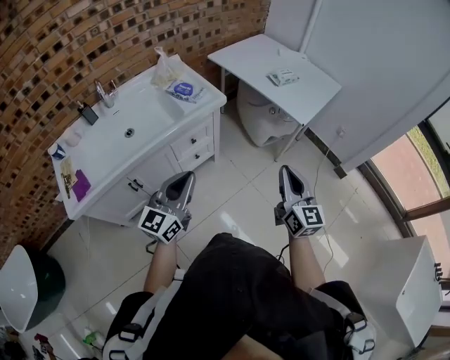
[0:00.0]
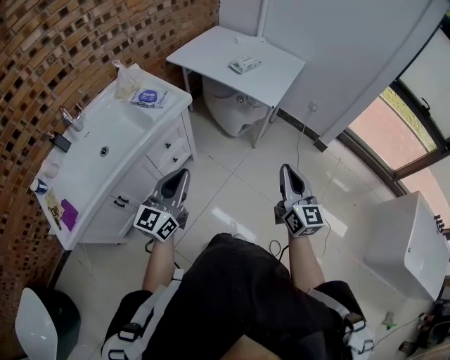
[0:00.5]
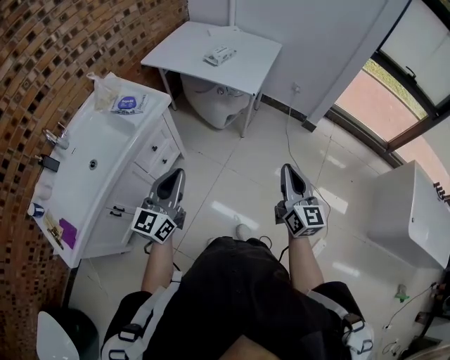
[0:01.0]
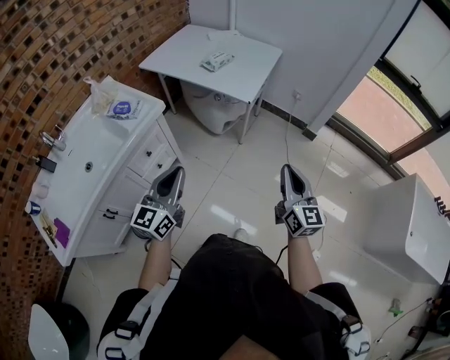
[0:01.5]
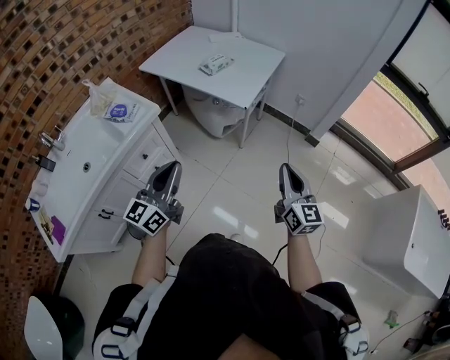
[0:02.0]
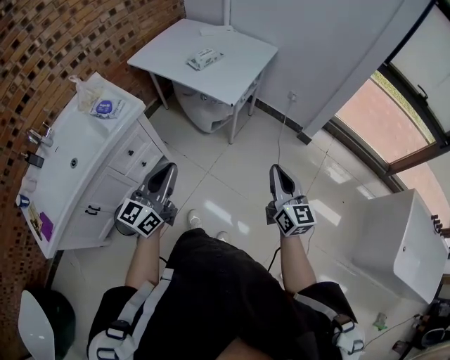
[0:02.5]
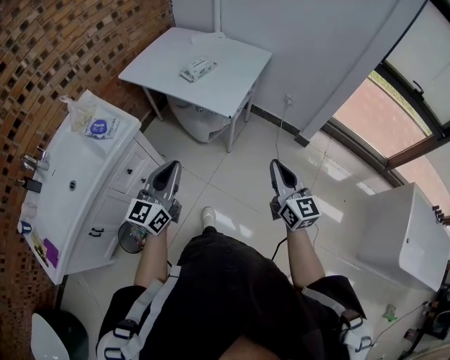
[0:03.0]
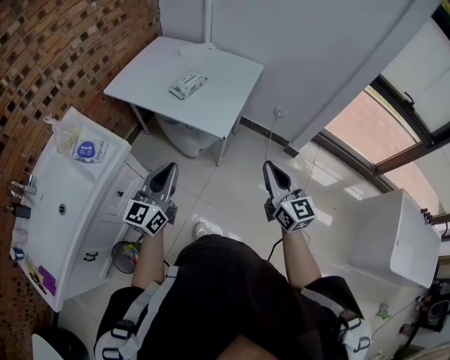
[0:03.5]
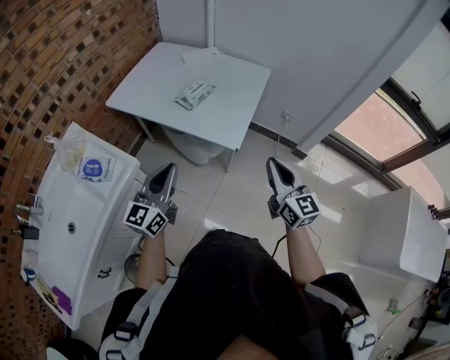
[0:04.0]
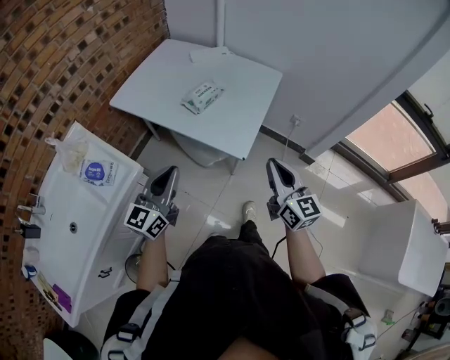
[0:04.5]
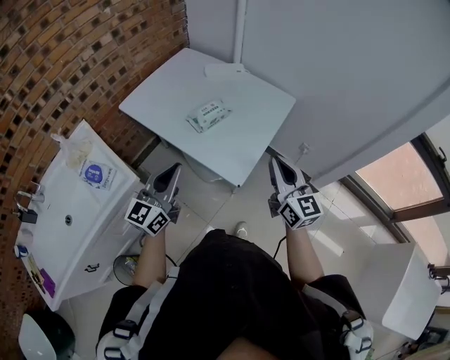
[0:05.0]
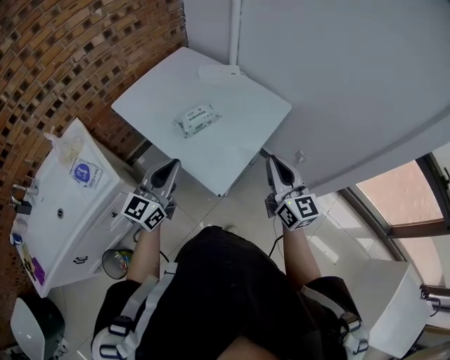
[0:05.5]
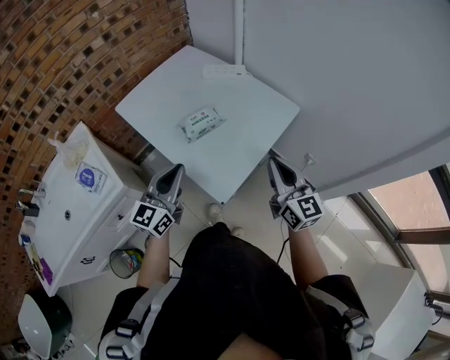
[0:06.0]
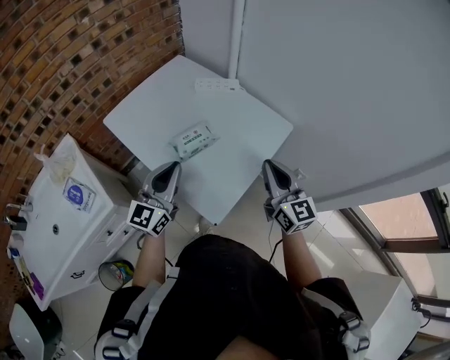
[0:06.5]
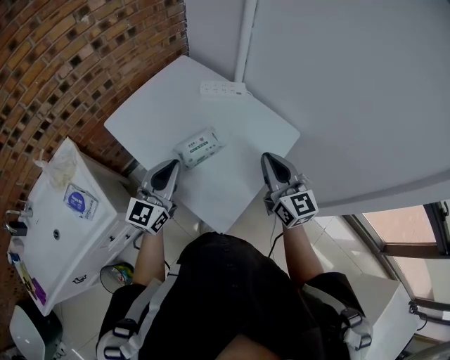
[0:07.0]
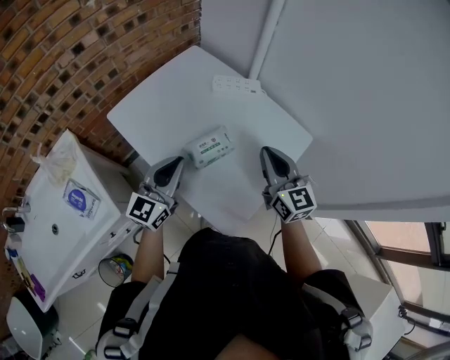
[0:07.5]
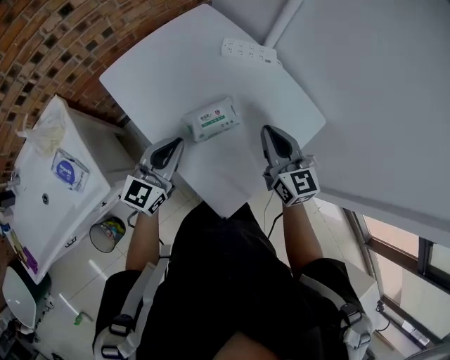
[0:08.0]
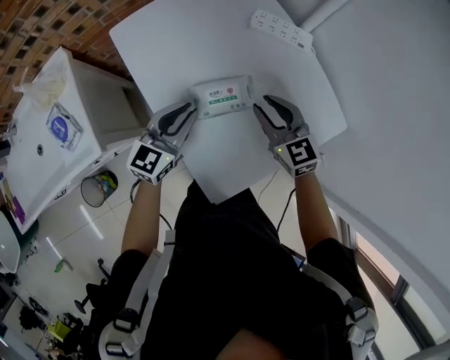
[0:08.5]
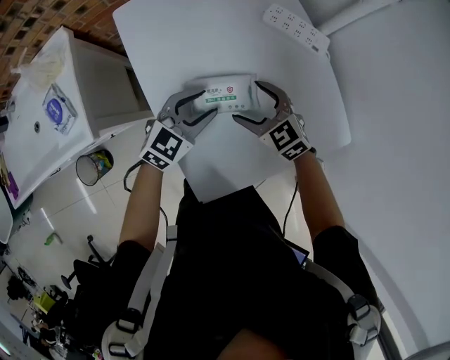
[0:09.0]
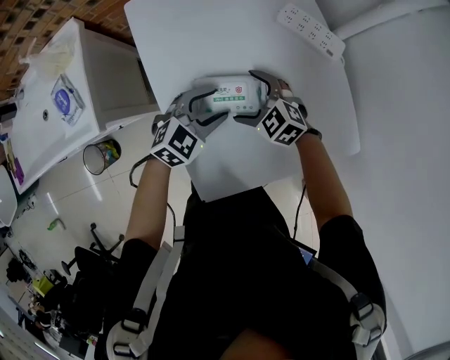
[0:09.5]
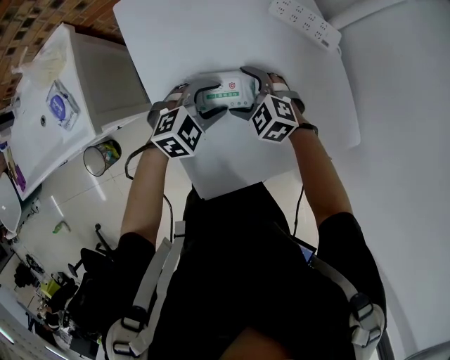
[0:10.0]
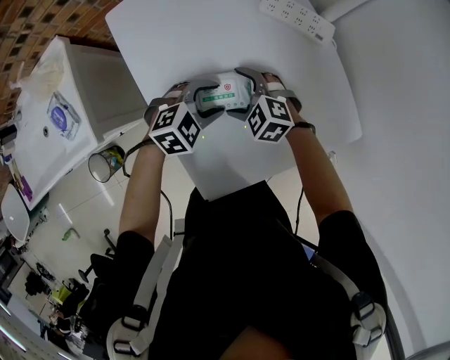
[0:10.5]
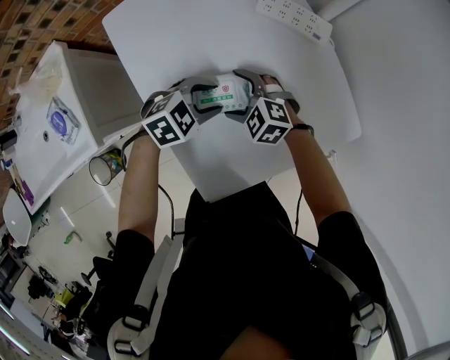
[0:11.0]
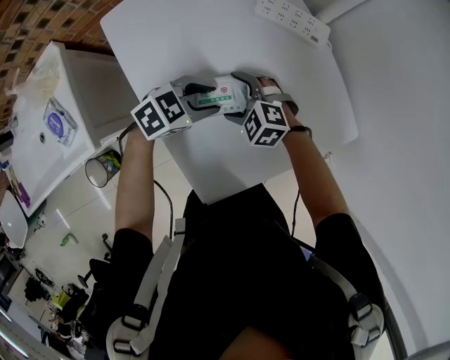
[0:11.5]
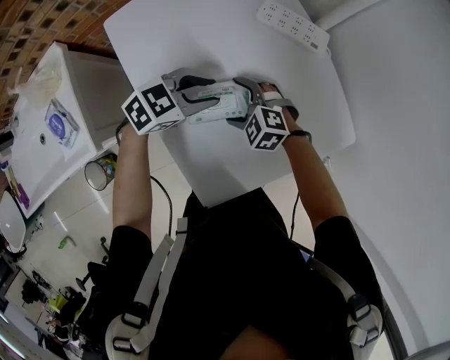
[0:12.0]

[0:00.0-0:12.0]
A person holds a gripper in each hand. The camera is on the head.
0:00.0 to 0:02.0: The right gripper is displaced to the right by about 25 cm; the left gripper is displaced to the right and forward by about 20 cm.
0:02.0 to 0:04.0: The grippers both shift forward by approximately 25 cm.
0:04.0 to 0:06.0: The right gripper shifts roughly 25 cm forward. Meanwhile the left gripper shifts about 25 cm forward and to the right.
0:06.0 to 0:08.0: The left gripper goes about 20 cm forward and downward. The right gripper heads forward and to the left, covering approximately 25 cm.
0:08.0 to 0:10.0: The grippers both shift downward by roughly 20 cm. The right gripper points its fingers approximately 40 degrees further downward, and opens its fingers; the left gripper angles its fingers downward, by roughly 40 degrees, and opens up.
0:10.0 to 0:12.0: The left gripper ends up some 5 cm from where it was, and rotates approximately 20 degrees.

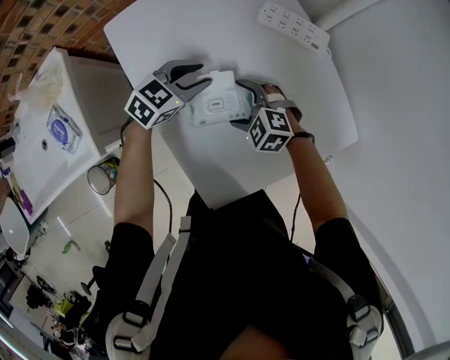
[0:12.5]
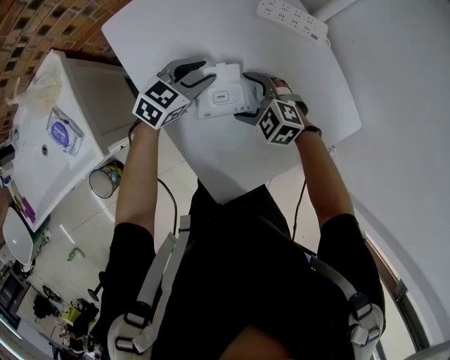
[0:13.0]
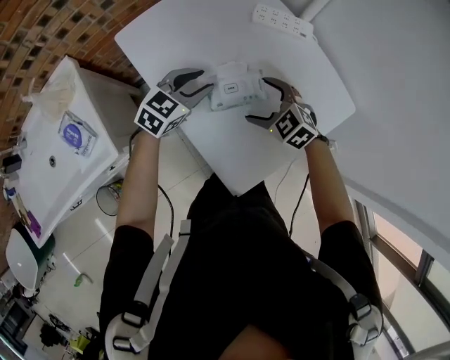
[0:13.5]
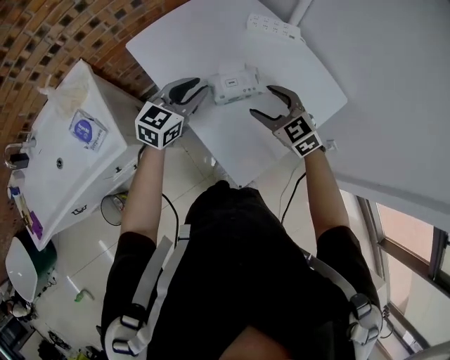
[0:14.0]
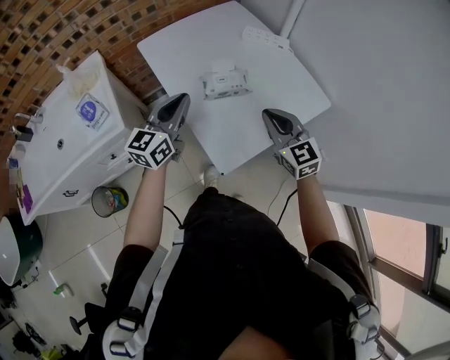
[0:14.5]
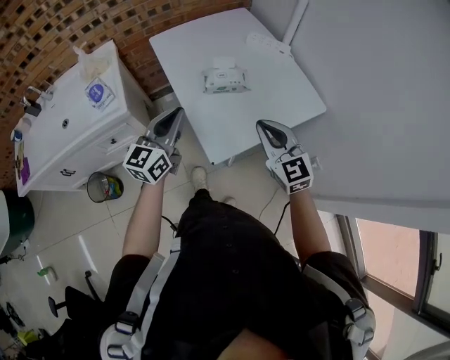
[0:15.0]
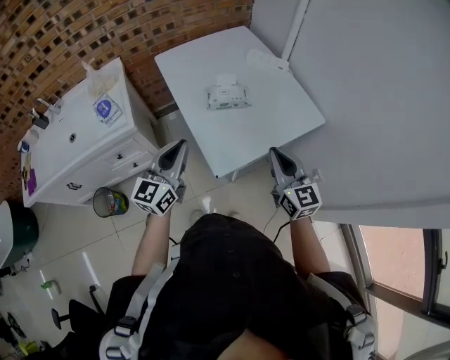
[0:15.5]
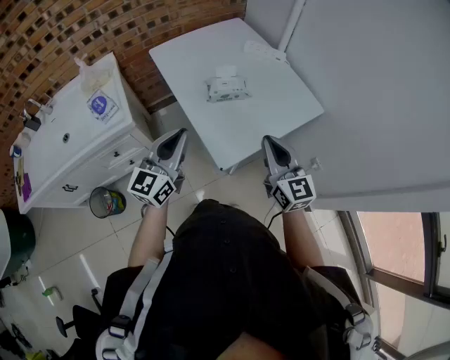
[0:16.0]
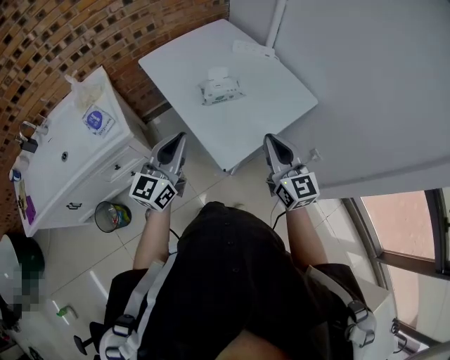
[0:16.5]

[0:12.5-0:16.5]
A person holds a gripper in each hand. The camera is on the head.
0:12.5 to 0:14.5: The right gripper is displaced upward by roughly 25 cm, tilts its fingers roughly 40 degrees upward, and closes its fingers. Meanwhile the left gripper shifts by about 30 cm, angles its fingers upward, by approximately 40 degrees, and closes up.
0:14.5 to 0:16.5: The right gripper is displaced backward and upward by roughly 15 cm, and swivels approximately 20 degrees. The left gripper is displaced backward by approximately 15 cm.

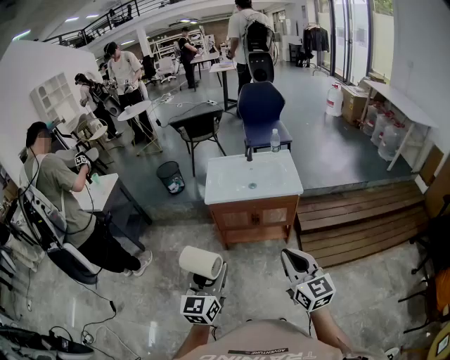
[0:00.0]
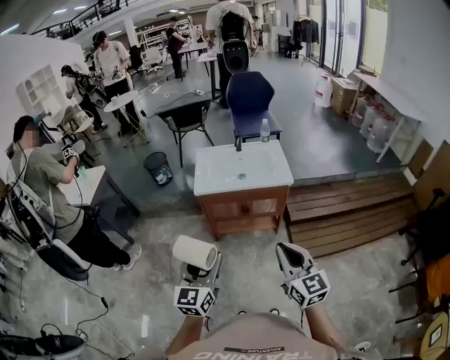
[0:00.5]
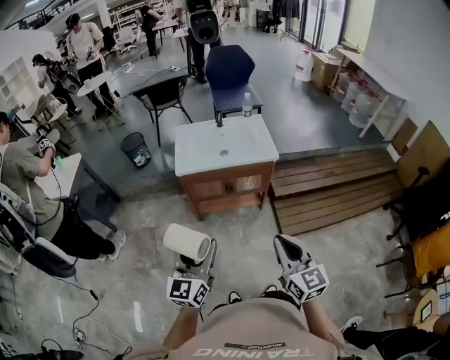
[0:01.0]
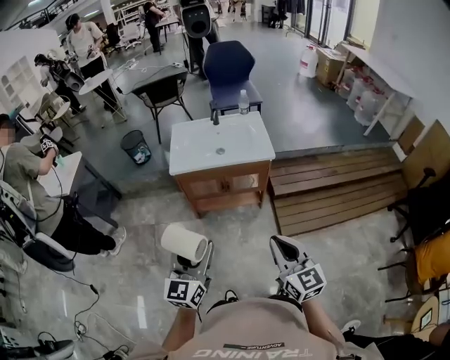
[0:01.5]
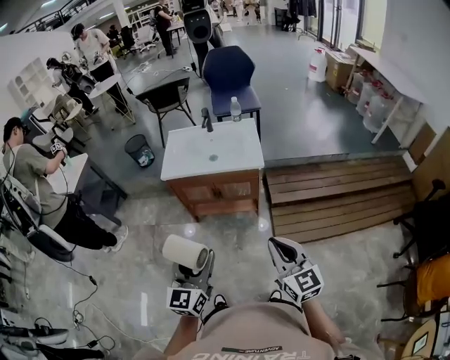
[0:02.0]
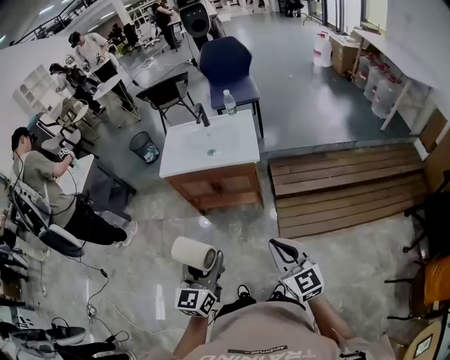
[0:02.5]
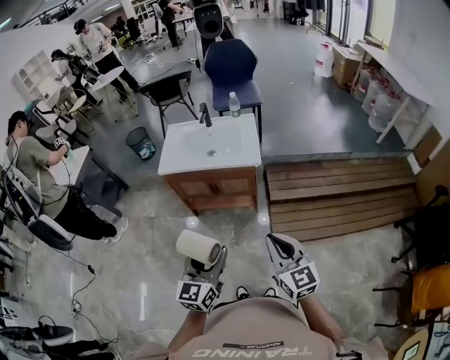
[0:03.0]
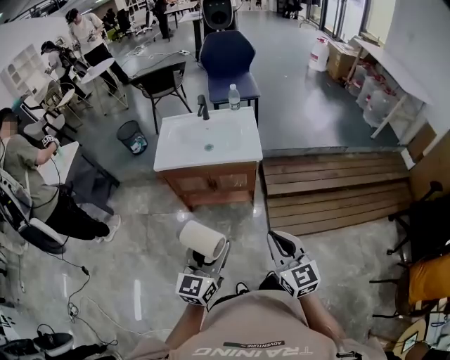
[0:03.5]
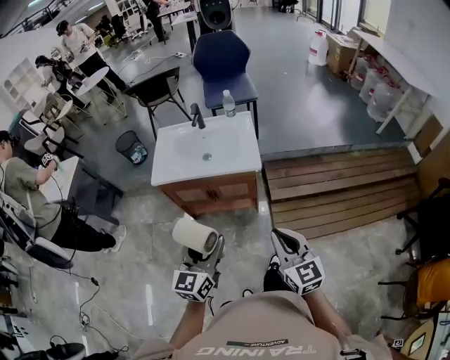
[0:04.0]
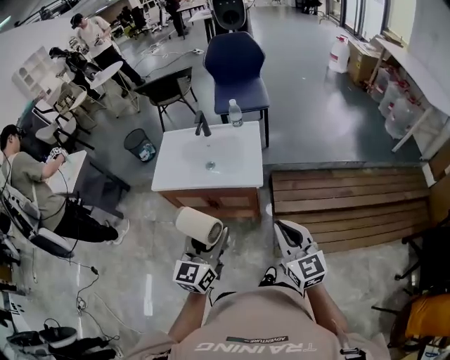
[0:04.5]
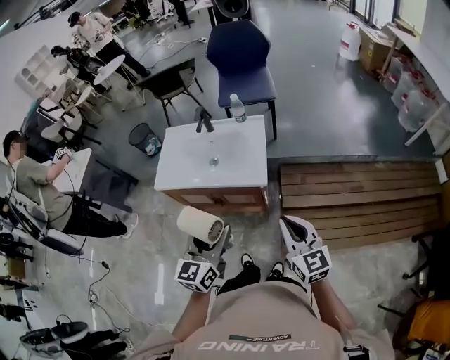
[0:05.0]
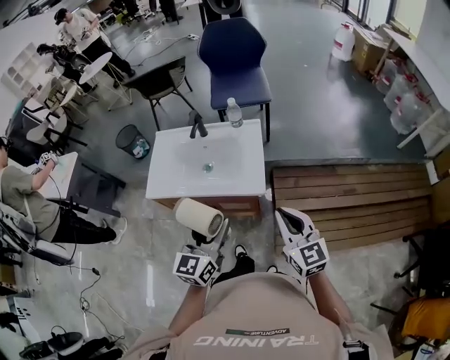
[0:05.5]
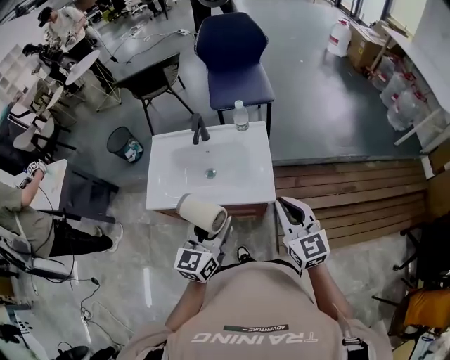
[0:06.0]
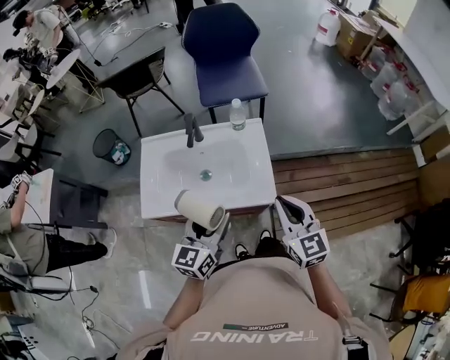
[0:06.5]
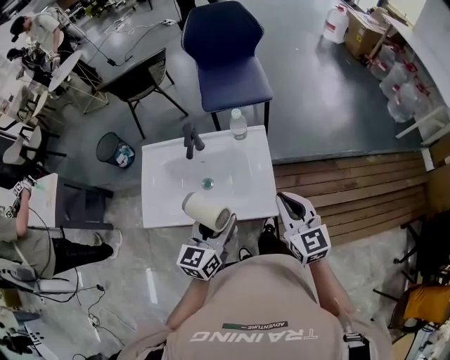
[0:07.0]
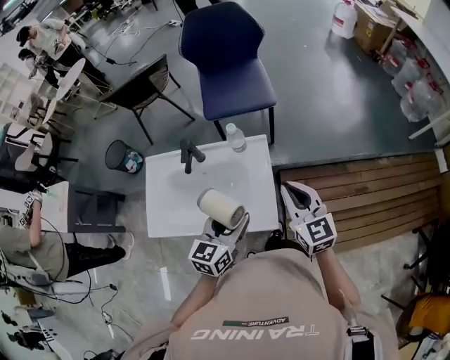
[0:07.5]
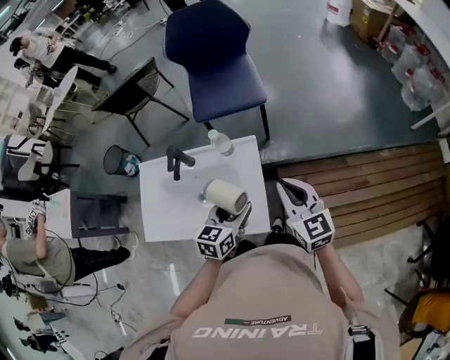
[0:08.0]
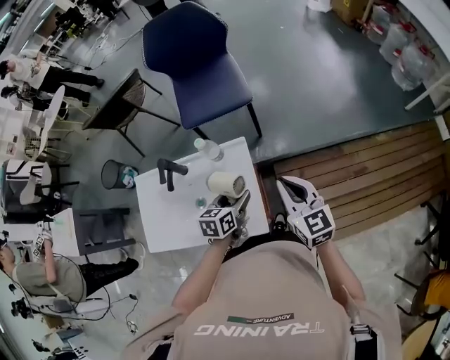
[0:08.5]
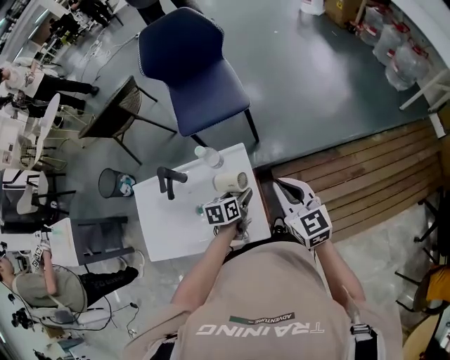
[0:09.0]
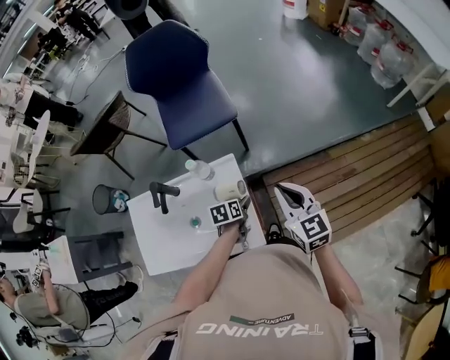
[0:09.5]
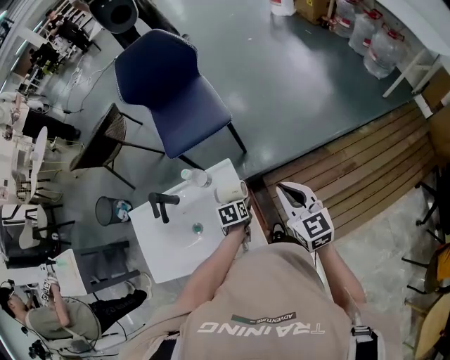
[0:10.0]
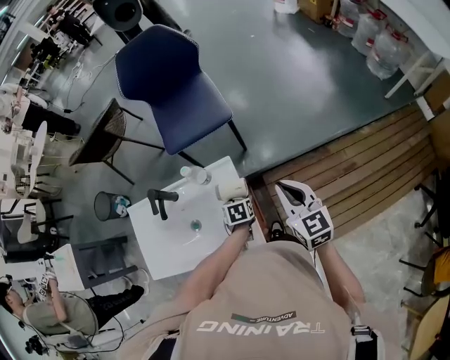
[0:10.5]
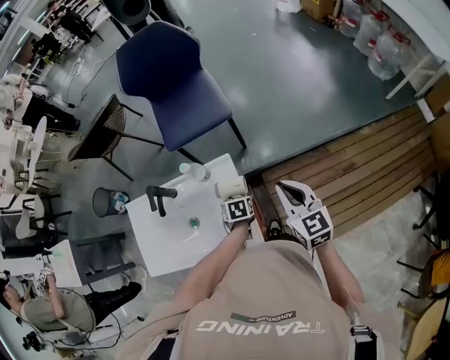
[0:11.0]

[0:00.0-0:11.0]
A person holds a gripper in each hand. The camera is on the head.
0:00.0 to 0:02.0: The grippers both shift to the right by roughly 15 cm.
0:02.0 to 0:03.5: The left gripper goes some 5 cm to the right.
0:03.5 to 0:05.5: Both grippers move forward, about 30 cm.
0:05.5 to 0:07.5: Both grippers move forward, approximately 25 cm.
0:07.5 to 0:09.0: The left gripper is displaced downward and forward by roughly 20 cm, and changes its angle by roughly 30 degrees. Meanwhile the right gripper goes approximately 5 cm forward.
0:09.0 to 0:11.0: The right gripper heads to the right, covering some 5 cm; the left gripper heads downward, covering roughly 5 cm, and turns by approximately 20 degrees.
